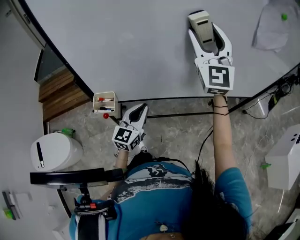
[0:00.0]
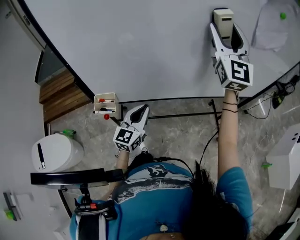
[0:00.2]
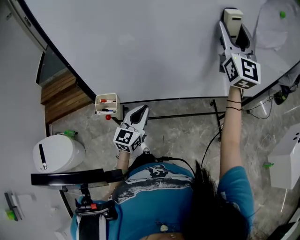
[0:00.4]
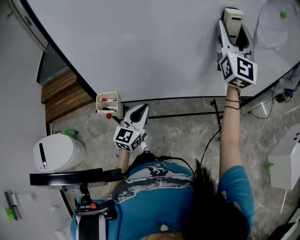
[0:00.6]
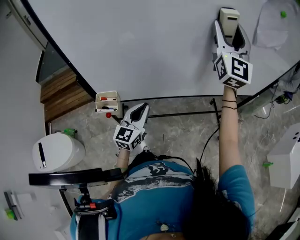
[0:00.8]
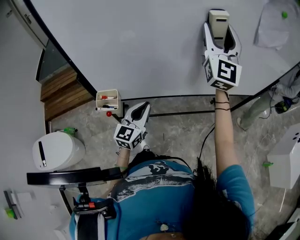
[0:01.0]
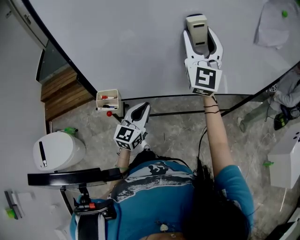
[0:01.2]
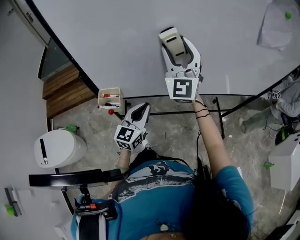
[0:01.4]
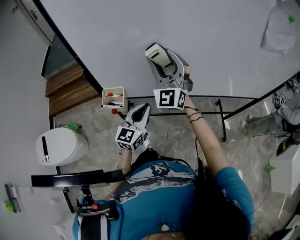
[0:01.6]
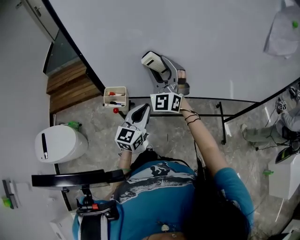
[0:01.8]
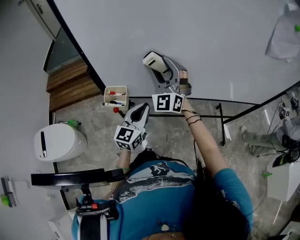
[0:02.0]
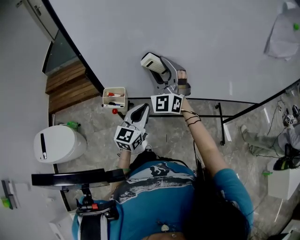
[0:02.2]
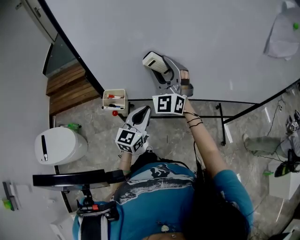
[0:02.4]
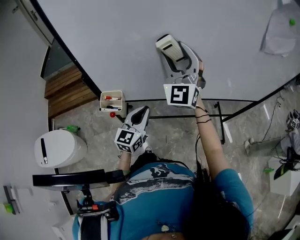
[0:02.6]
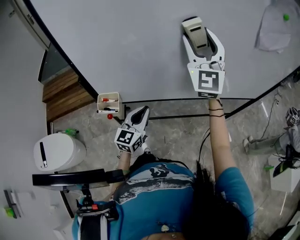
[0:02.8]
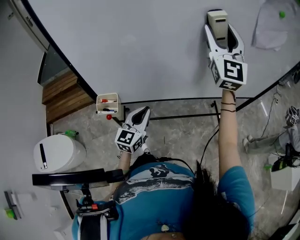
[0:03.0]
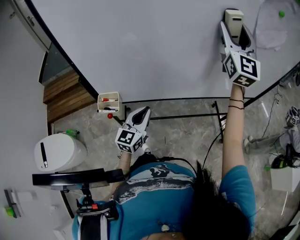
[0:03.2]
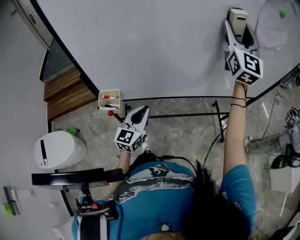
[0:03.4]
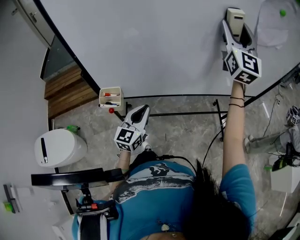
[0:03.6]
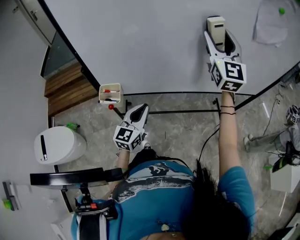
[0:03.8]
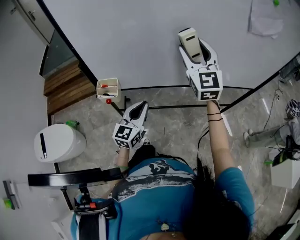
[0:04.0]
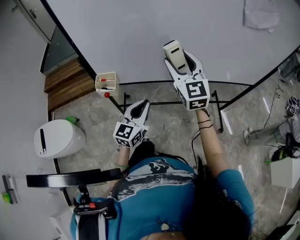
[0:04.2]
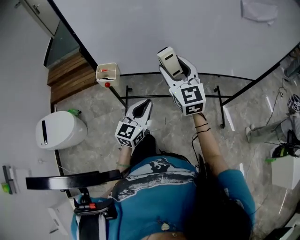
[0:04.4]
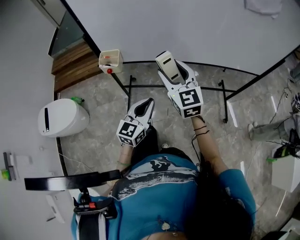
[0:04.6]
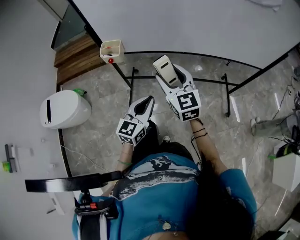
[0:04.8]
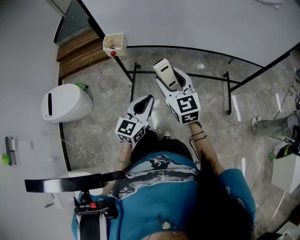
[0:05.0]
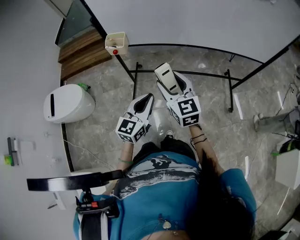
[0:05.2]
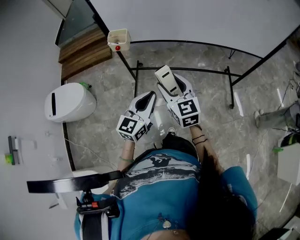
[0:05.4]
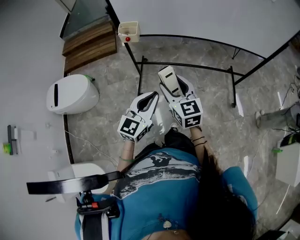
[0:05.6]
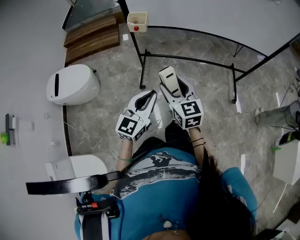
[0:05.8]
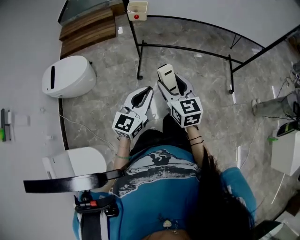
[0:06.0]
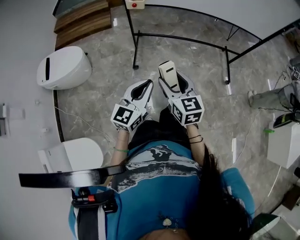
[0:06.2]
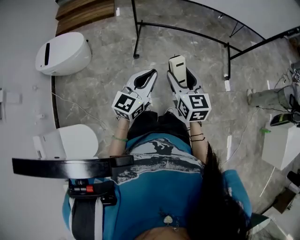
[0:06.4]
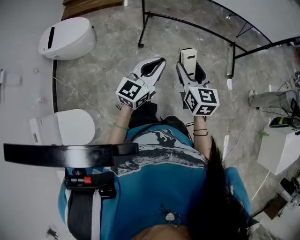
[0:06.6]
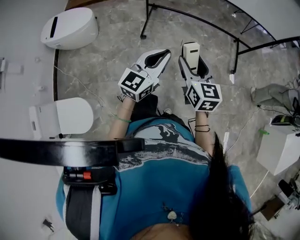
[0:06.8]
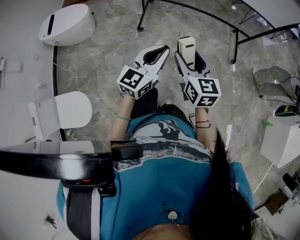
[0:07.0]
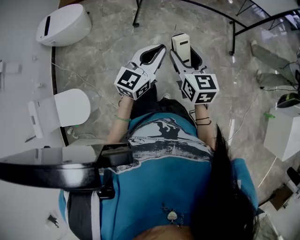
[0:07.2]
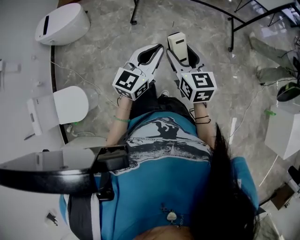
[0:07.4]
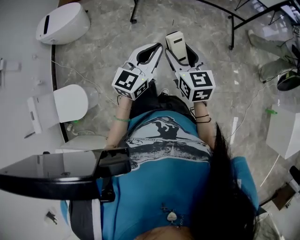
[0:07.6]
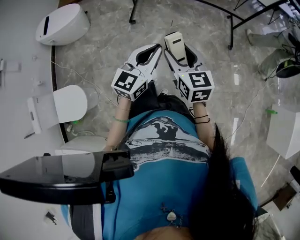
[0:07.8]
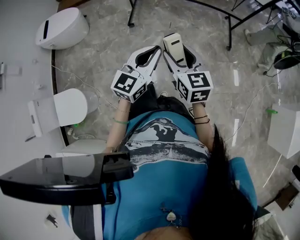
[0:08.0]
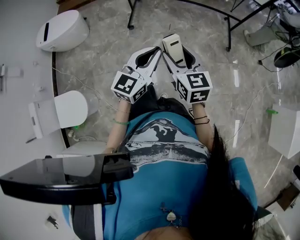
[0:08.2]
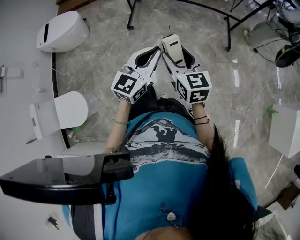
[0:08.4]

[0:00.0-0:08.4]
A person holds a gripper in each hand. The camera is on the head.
0:00.0 to 0:01.4: The right gripper travels downward and to the left by about 15 cm.
0:01.4 to 0:02.8: The right gripper heads upward and to the right, covering roughly 10 cm.
0:02.8 to 0:04.2: The left gripper shifts roughly 10 cm backward, while the right gripper moves downward and backward, some 15 cm, and swivels about 30 degrees.
0:04.2 to 0:05.6: The left gripper goes some 30 cm backward. The right gripper moves backward and downward, about 35 cm, and swivels about 30 degrees.
0:05.6 to 0:07.0: The two grippers go approximately 30 cm backward.
0:07.0 to 0:08.4: The grippers both shift to the right and backward by about 10 cm.

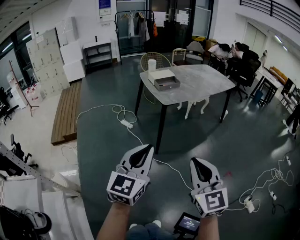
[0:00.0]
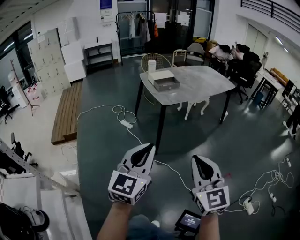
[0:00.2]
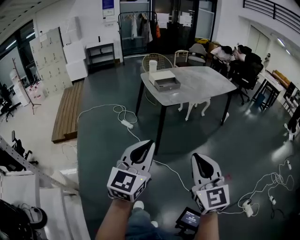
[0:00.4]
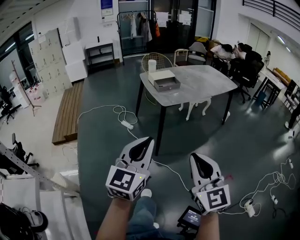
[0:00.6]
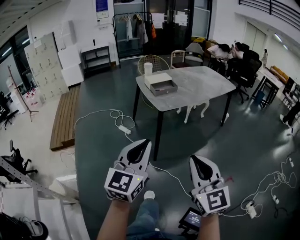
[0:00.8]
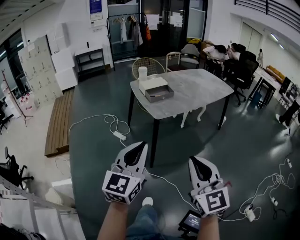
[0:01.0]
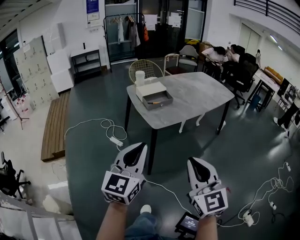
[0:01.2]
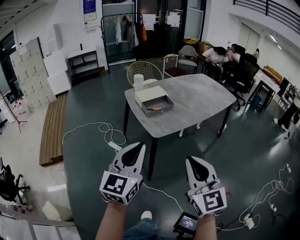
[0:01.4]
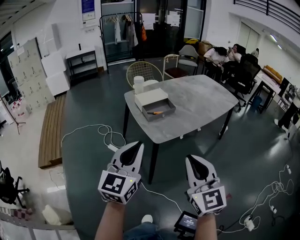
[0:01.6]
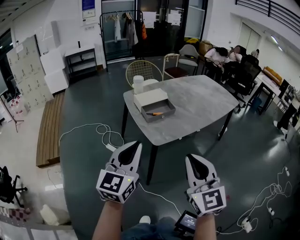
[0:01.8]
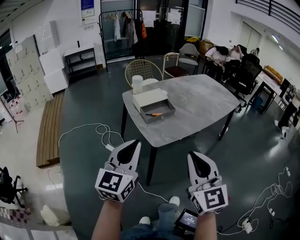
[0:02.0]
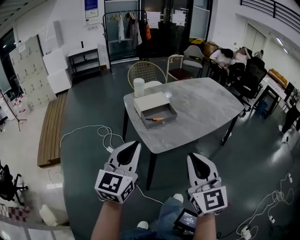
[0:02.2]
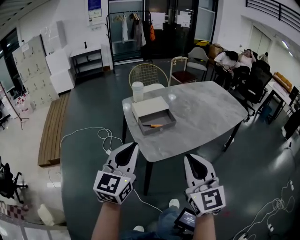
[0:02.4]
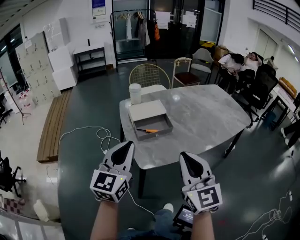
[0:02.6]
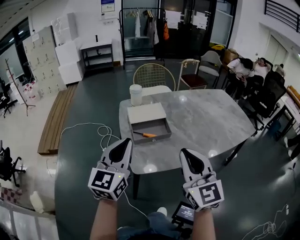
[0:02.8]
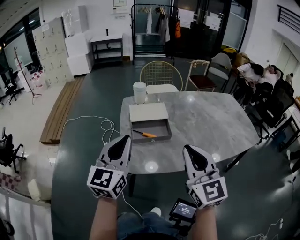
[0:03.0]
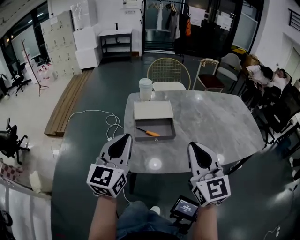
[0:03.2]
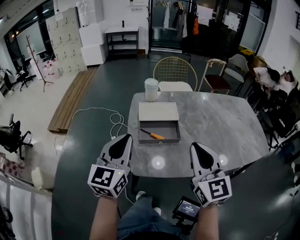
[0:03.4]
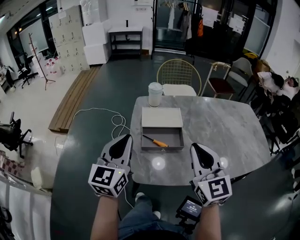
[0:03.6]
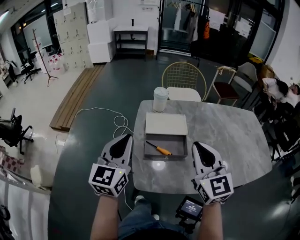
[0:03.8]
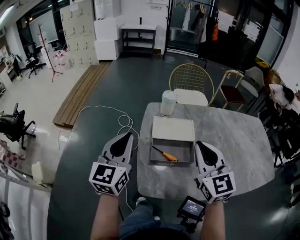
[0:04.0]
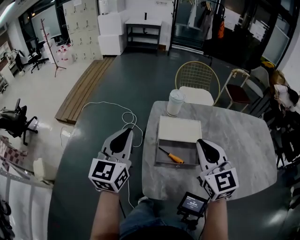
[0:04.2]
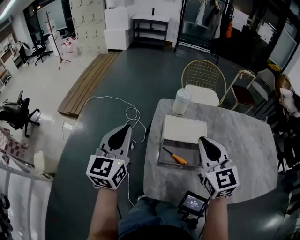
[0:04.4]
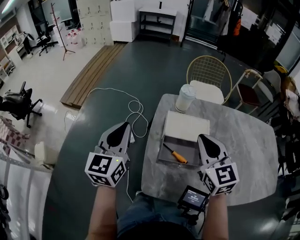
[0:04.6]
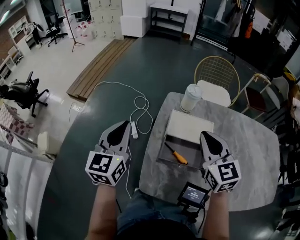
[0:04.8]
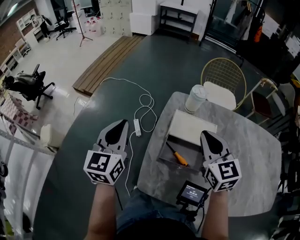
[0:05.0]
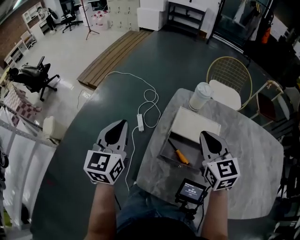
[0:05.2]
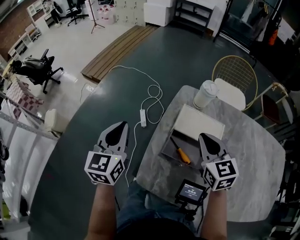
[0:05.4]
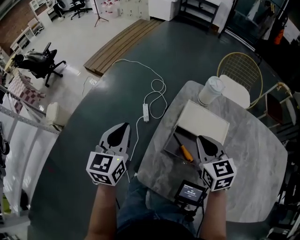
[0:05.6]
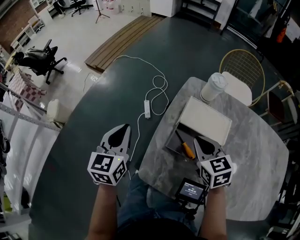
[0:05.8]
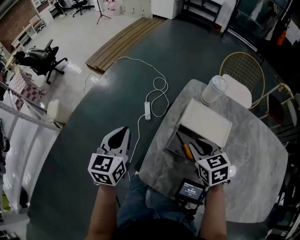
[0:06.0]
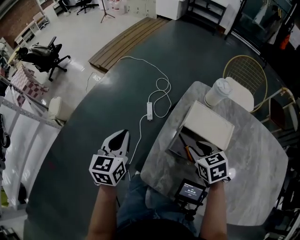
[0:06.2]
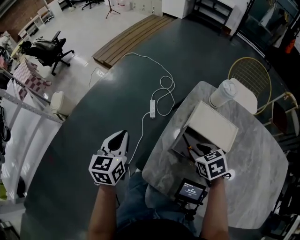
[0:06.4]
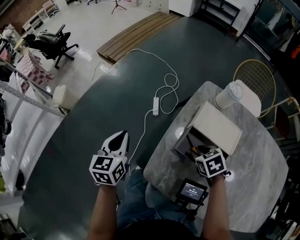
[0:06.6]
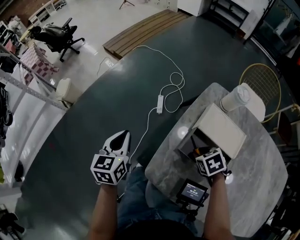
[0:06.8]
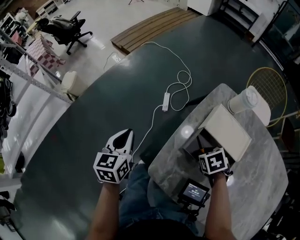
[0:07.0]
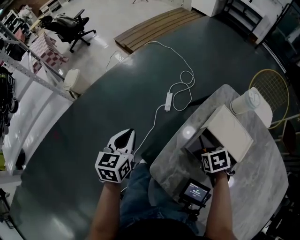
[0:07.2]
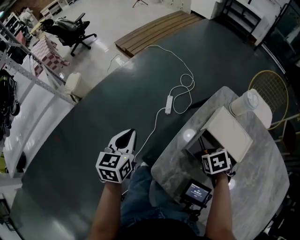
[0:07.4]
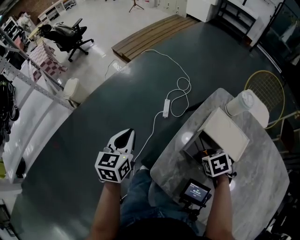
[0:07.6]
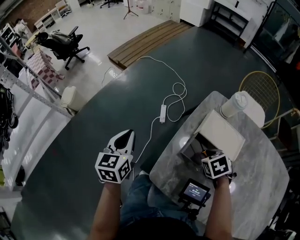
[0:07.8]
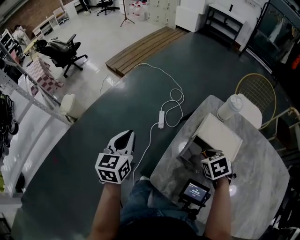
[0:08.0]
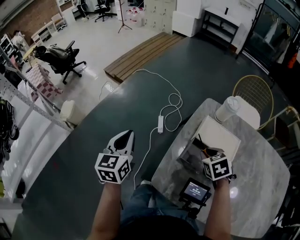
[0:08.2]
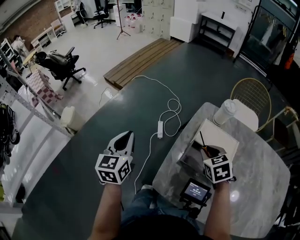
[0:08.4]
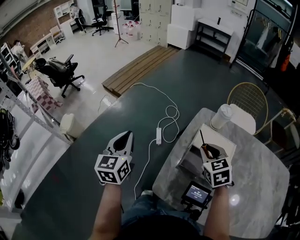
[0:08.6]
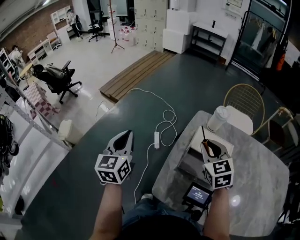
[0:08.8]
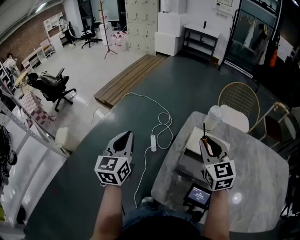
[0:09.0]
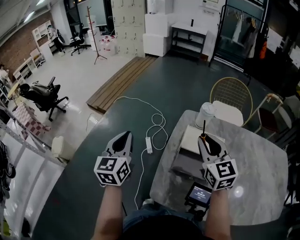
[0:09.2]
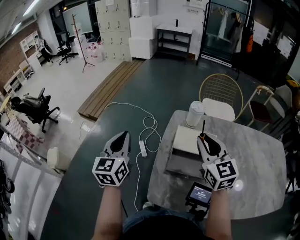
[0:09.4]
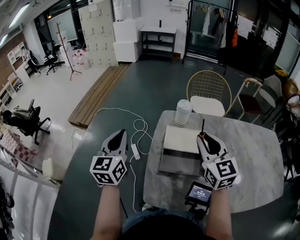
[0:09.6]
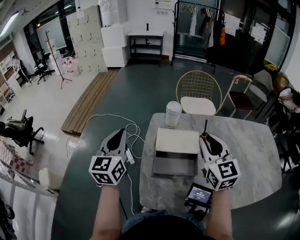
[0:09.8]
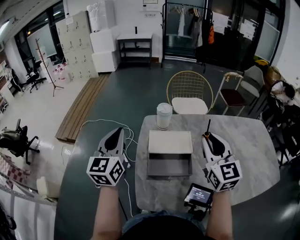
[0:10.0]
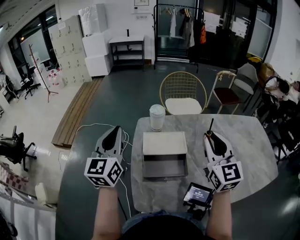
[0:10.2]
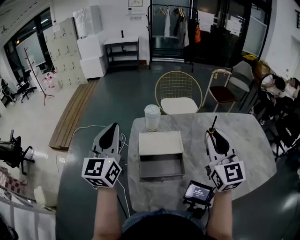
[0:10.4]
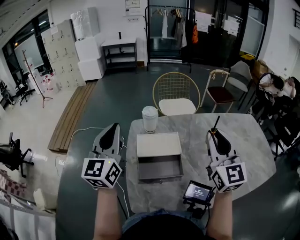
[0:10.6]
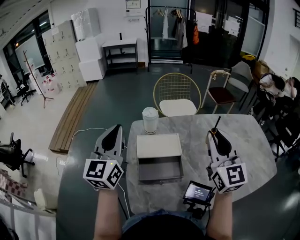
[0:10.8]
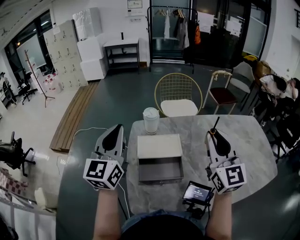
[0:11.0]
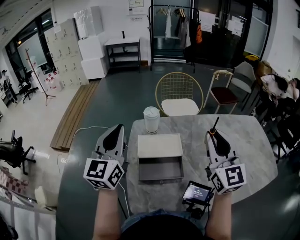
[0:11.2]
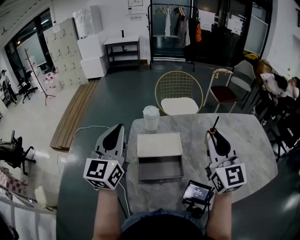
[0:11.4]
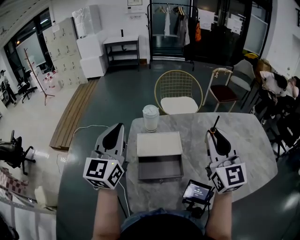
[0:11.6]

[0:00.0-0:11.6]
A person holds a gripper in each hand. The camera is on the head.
0:00.0 to 0:01.4: The grippers both shift forward by about 30 cm.
0:01.4 to 0:02.8: The two grippers go approximately 30 cm forward.
0:02.8 to 0:04.4: The right gripper shifts roughly 25 cm forward, and changes its angle by roughly 20 degrees. The left gripper travels forward and to the left by some 20 cm, and turns by roughly 30 degrees.
0:04.4 to 0:05.8: The grippers both shift downward by about 15 cm. The right gripper changes its angle by about 30 degrees; the left gripper rotates approximately 30 degrees.
0:05.8 to 0:07.2: The left gripper shifts by approximately 10 cm, while the right gripper goes some 15 cm downward, and tilts its fingers approximately 40 degrees downward.
0:07.2 to 0:08.8: The left gripper heads upward, covering roughly 15 cm, and changes its angle by about 20 degrees. Meanwhile the right gripper heads upward, covering approximately 20 cm, and tilts its fingers some 50 degrees upward.
0:08.8 to 0:10.2: The right gripper changes place by some 25 cm, and swivels about 40 degrees. The left gripper shifts by about 20 cm, and rotates some 30 degrees.
0:10.2 to 0:11.6: The left gripper shifts by roughly 5 cm.

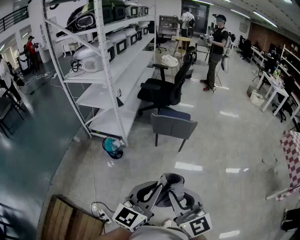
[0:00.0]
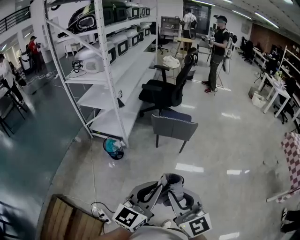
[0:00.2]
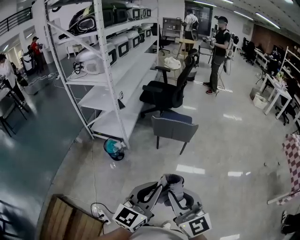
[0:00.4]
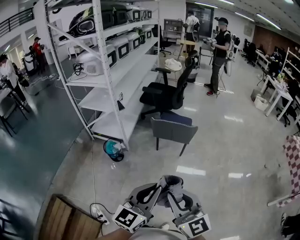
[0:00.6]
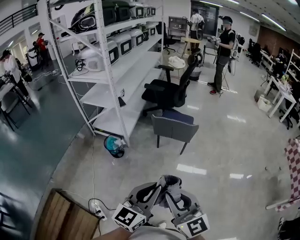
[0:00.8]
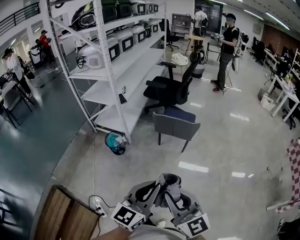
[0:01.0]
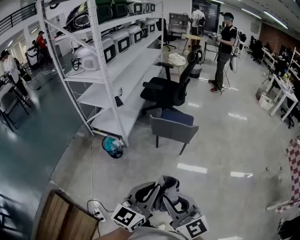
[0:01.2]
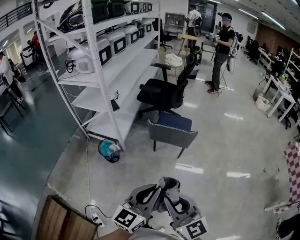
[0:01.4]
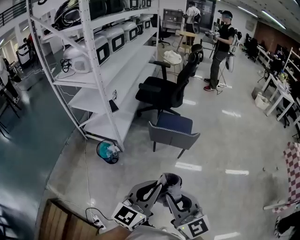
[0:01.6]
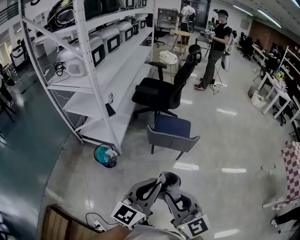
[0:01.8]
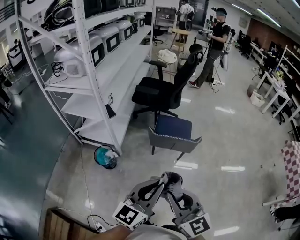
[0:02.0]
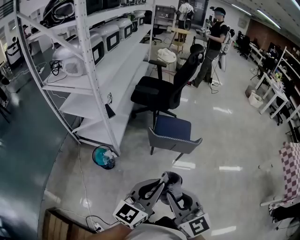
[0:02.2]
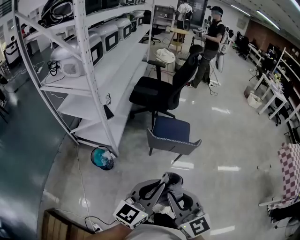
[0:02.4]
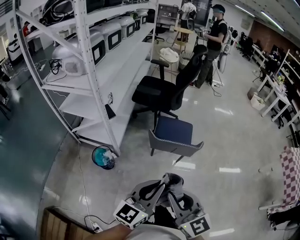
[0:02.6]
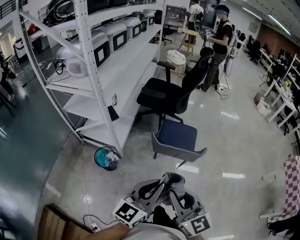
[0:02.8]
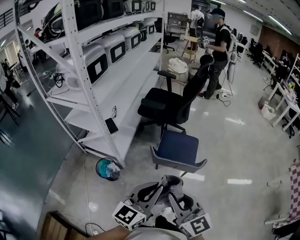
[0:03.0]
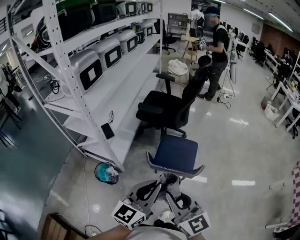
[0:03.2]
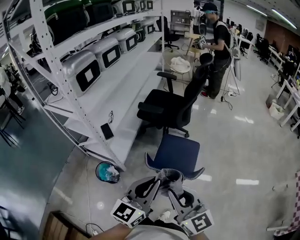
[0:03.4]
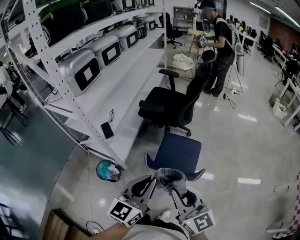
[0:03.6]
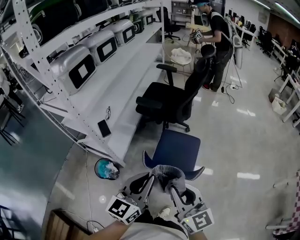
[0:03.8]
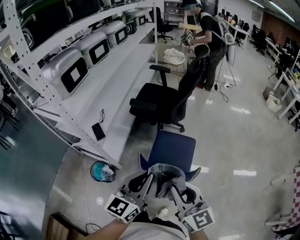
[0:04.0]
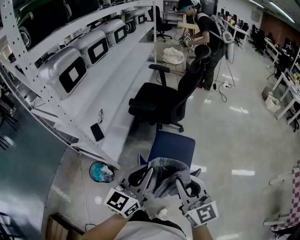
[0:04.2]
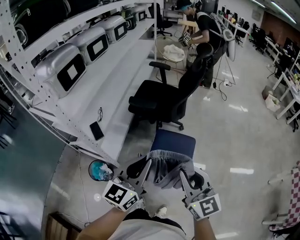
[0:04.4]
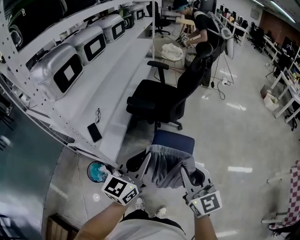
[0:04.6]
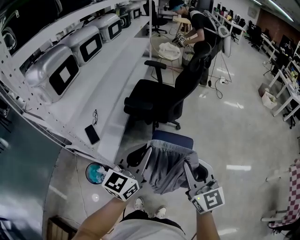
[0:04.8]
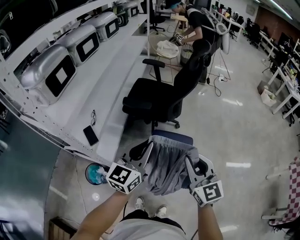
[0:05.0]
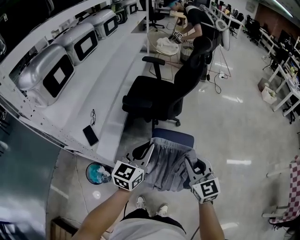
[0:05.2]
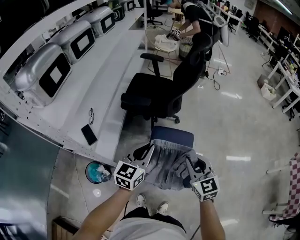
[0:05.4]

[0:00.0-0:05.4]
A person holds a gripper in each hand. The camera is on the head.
0:00.0 to 0:01.4: The two grippers go some 10 cm forward and to the right.
0:01.4 to 0:02.8: The left gripper moves forward and to the left, approximately 25 cm. The right gripper travels forward by roughly 20 cm.
0:02.8 to 0:04.0: Both grippers move forward and to the right, approximately 25 cm.
0:04.0 to 0:05.4: The grippers both shift forward and downward by some 20 cm. The right gripper changes its angle by some 20 degrees.
